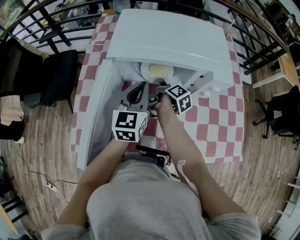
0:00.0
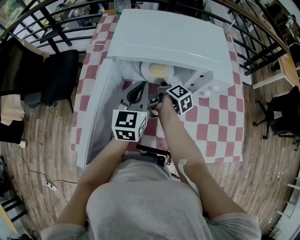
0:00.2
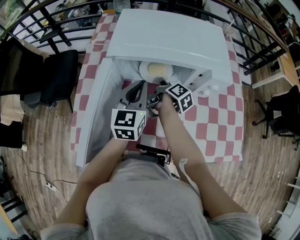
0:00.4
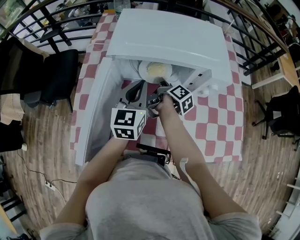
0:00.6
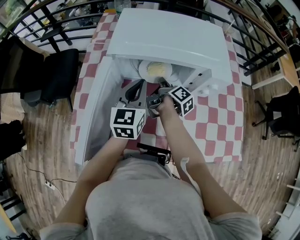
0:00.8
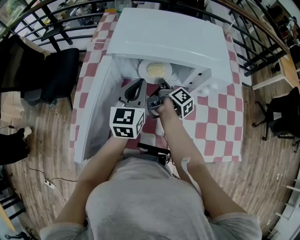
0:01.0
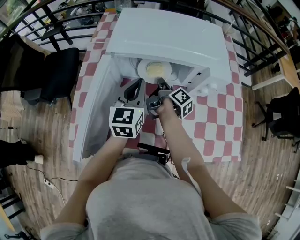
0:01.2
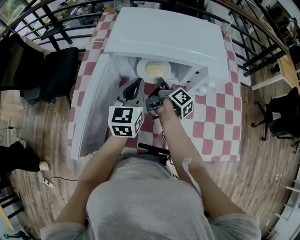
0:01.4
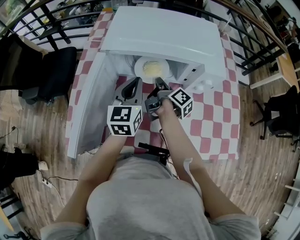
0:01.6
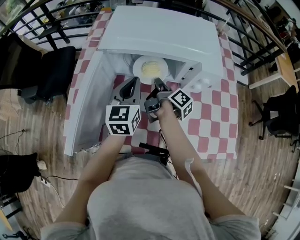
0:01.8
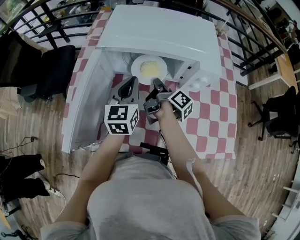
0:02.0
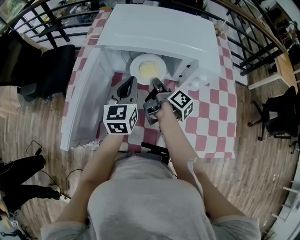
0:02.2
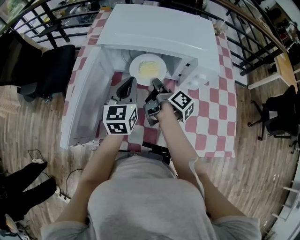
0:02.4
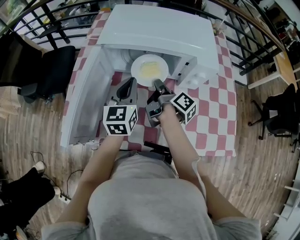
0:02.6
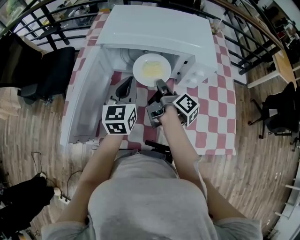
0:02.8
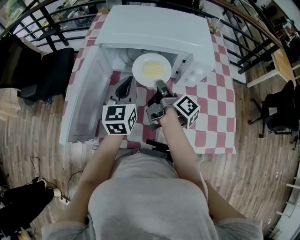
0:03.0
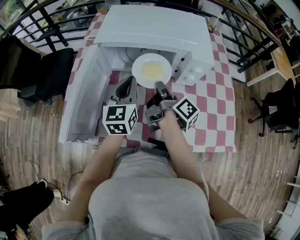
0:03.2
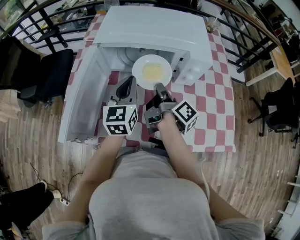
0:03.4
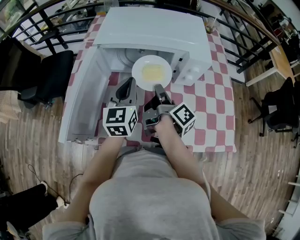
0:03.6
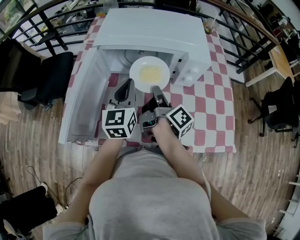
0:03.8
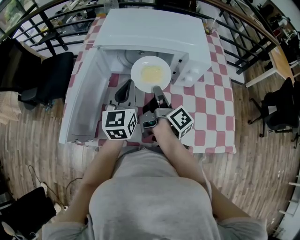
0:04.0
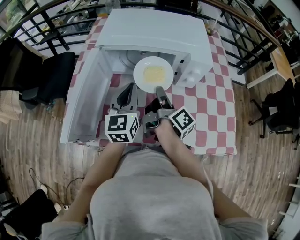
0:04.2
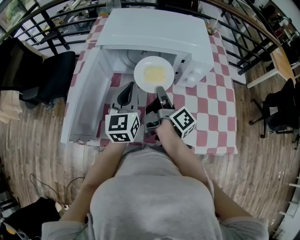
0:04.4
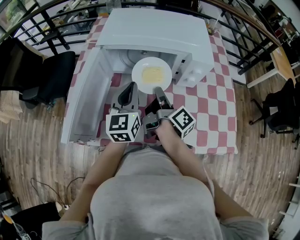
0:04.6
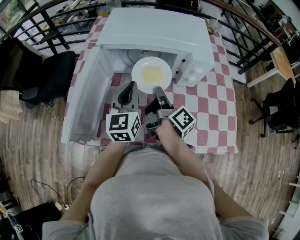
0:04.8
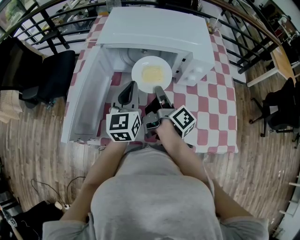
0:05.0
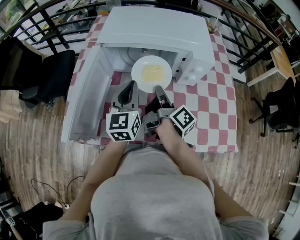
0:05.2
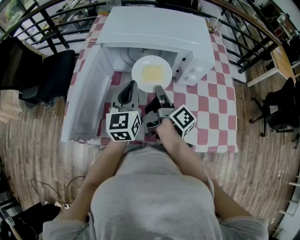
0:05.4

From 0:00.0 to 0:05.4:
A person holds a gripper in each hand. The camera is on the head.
From 0:00.0 to 0:01.4: The grippers stay close to where they were, moving slightly.
From 0:01.4 to 0:02.8: The right gripper heads backward and upward, covering approximately 10 cm.
From 0:02.8 to 0:04.0: The grippers make only small movements.
From 0:04.0 to 0:05.4: Neither gripper changes place.

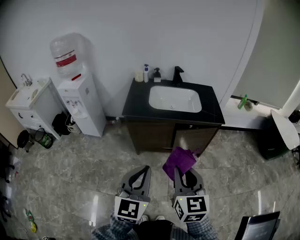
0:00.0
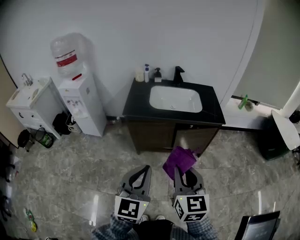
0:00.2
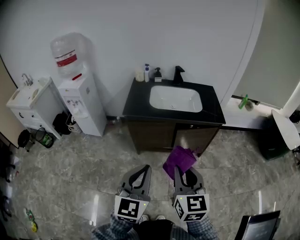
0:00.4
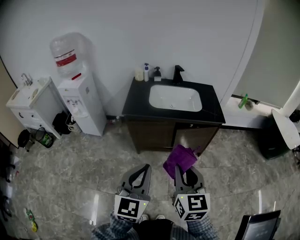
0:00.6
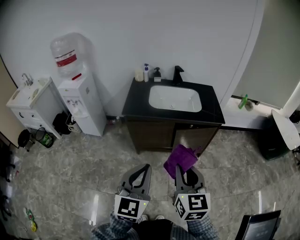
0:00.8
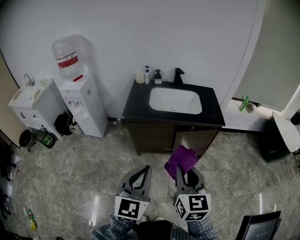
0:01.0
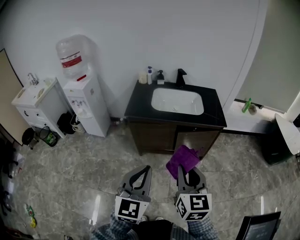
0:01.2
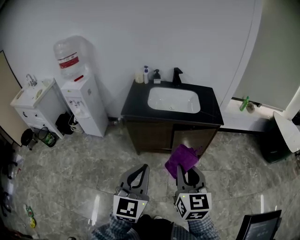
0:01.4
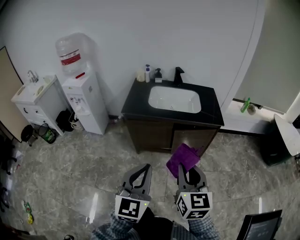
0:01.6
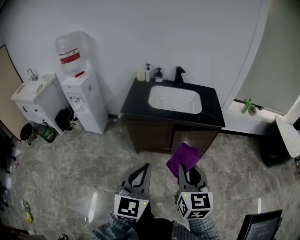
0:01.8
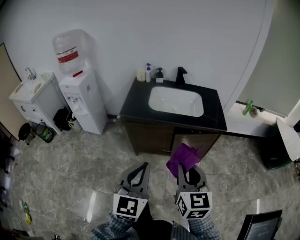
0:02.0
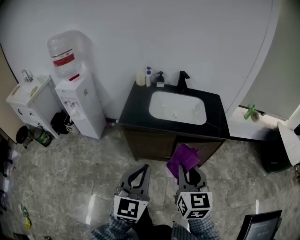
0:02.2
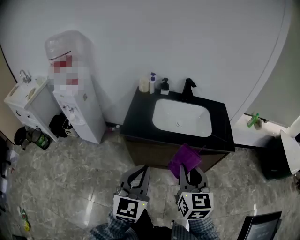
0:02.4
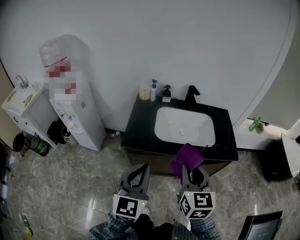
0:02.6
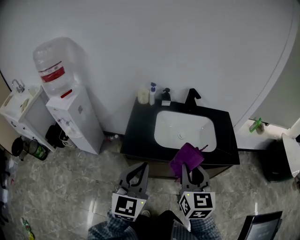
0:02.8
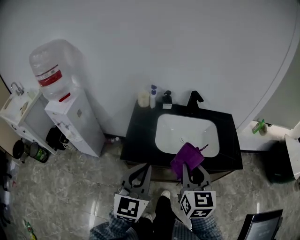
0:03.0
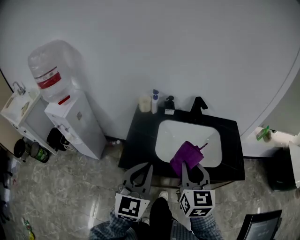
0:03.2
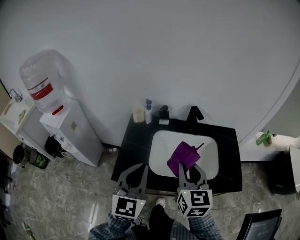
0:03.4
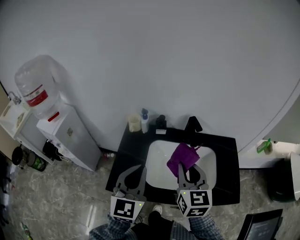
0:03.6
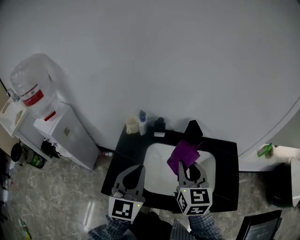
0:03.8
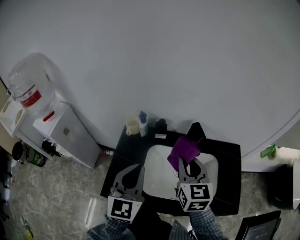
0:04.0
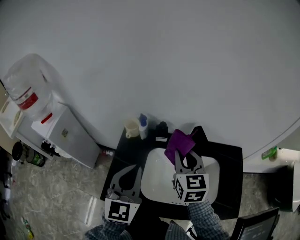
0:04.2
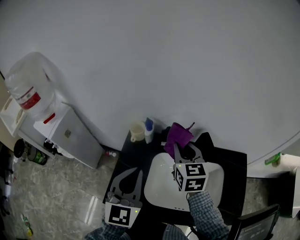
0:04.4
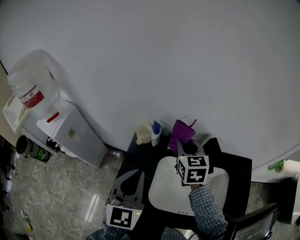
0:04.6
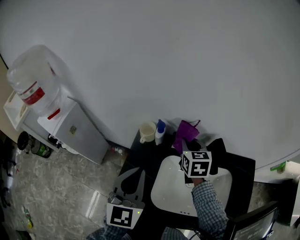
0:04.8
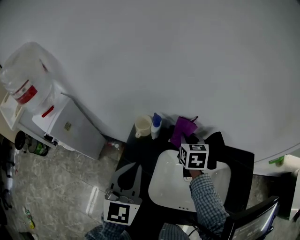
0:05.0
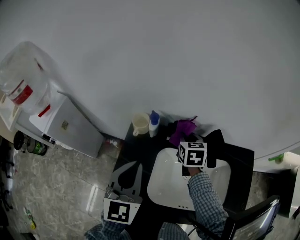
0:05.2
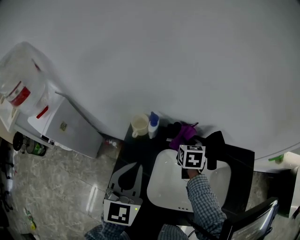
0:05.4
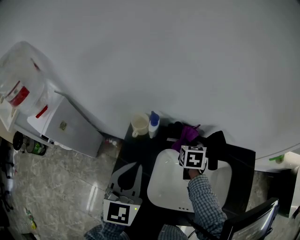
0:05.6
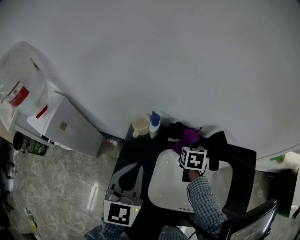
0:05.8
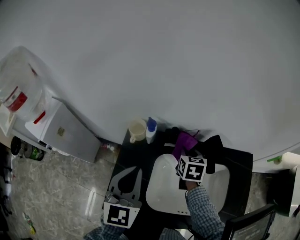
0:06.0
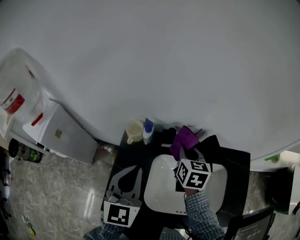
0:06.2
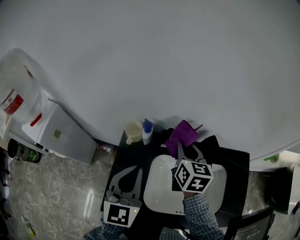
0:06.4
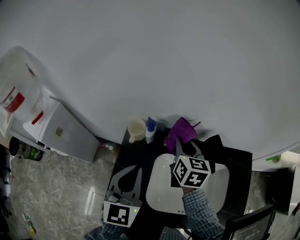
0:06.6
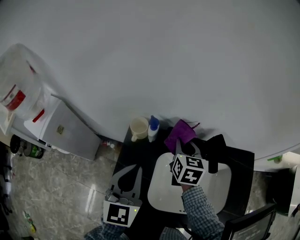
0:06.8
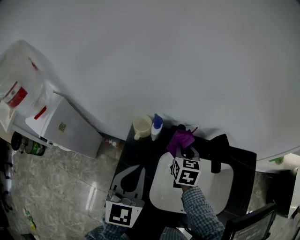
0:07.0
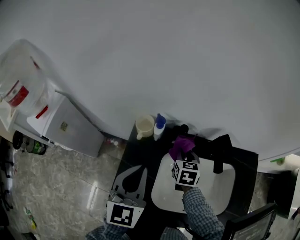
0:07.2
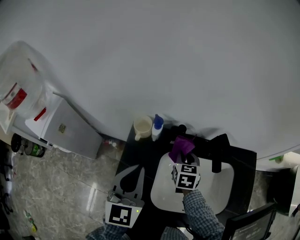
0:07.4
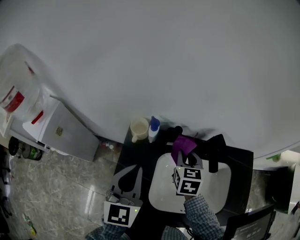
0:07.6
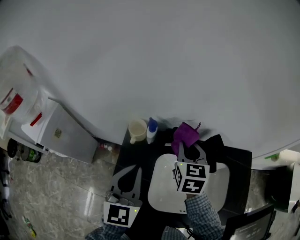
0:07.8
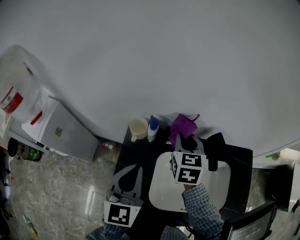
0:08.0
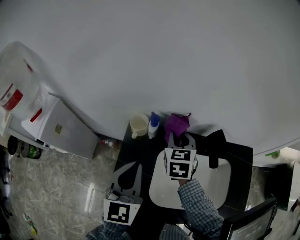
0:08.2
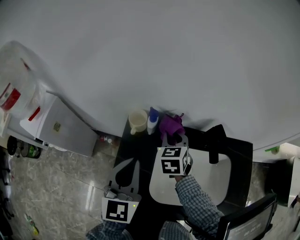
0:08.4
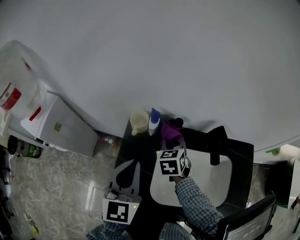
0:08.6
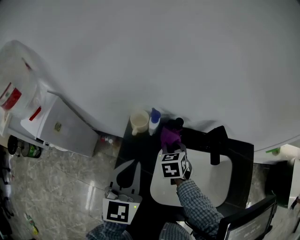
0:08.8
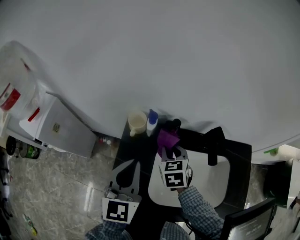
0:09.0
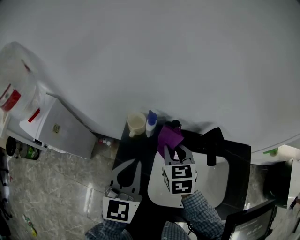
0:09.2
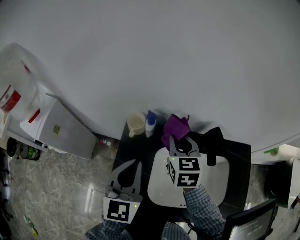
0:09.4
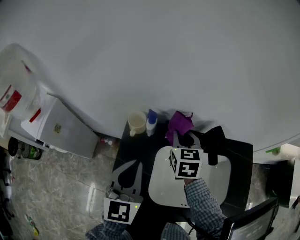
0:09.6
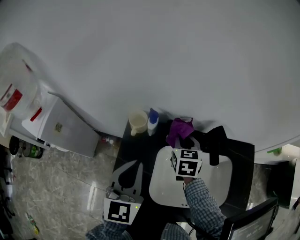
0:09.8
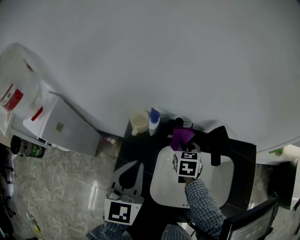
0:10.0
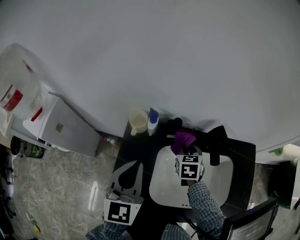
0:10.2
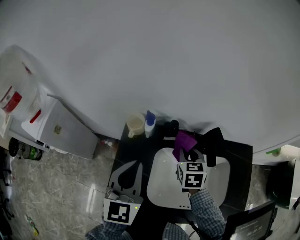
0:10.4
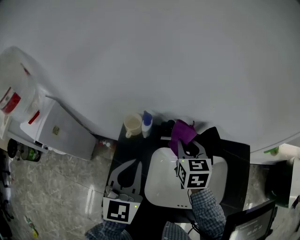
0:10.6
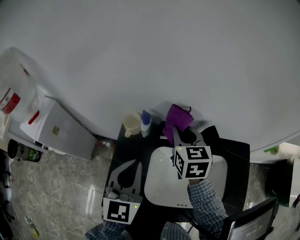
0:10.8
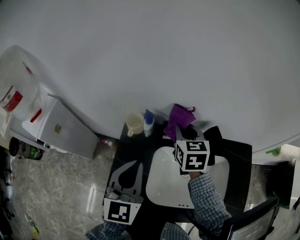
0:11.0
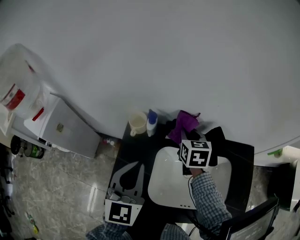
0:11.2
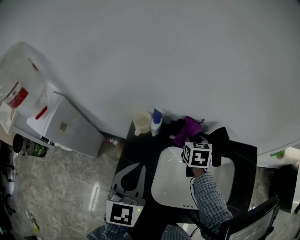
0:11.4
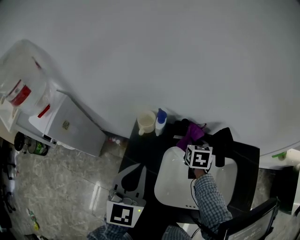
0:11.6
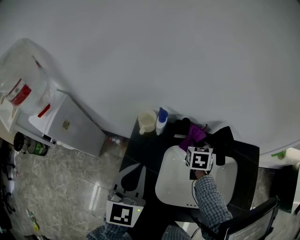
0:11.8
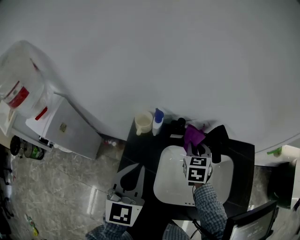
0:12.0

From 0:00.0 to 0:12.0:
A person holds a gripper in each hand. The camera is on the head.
From 0:00.0 to 0:01.6: Both grippers move to the right, some 5 cm.
From 0:01.6 to 0:03.0: Both grippers are carried forward, approximately 40 cm.
From 0:03.0 to 0:04.4: Both grippers move forward, some 35 cm.
From 0:04.4 to 0:06.0: The left gripper travels forward and downward by about 10 cm; the right gripper heads downward, covering approximately 15 cm, and turns by roughly 30 degrees.
From 0:06.0 to 0:07.6: The right gripper moves up and down over roughly 15 cm, changing direction 2 times.
From 0:07.6 to 0:09.0: The right gripper is displaced to the left by approximately 5 cm, and reaches roughly 5 cm upward, then returns.
From 0:09.0 to 0:10.4: The right gripper goes up and down, approximately 10 cm each way, reversing 2 times.
From 0:10.4 to 0:12.0: The right gripper goes up and down, approximately 15 cm each way, reversing 2 times.

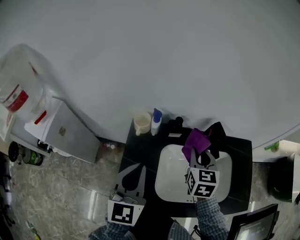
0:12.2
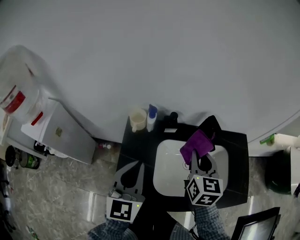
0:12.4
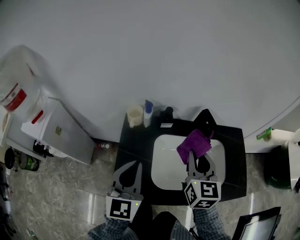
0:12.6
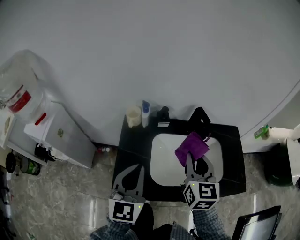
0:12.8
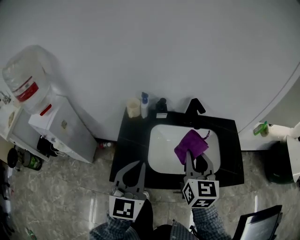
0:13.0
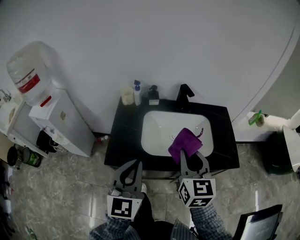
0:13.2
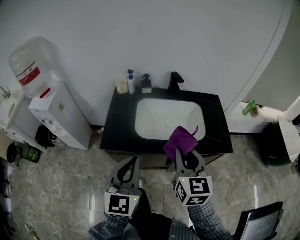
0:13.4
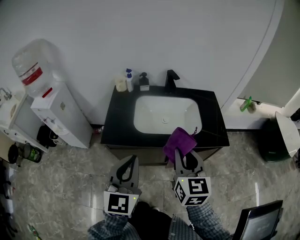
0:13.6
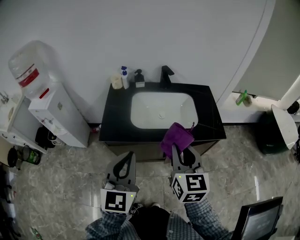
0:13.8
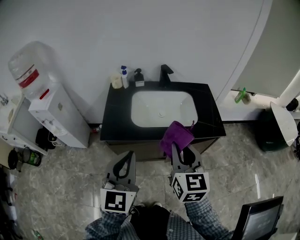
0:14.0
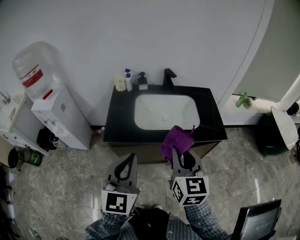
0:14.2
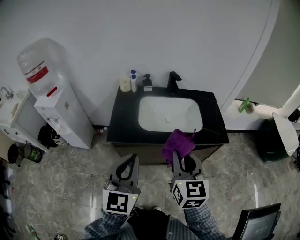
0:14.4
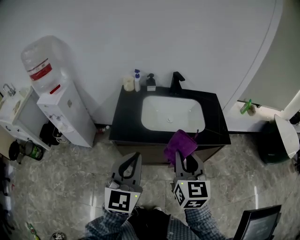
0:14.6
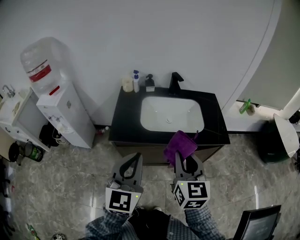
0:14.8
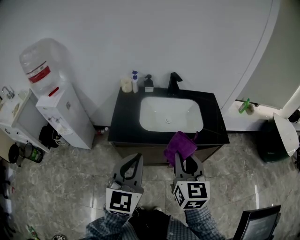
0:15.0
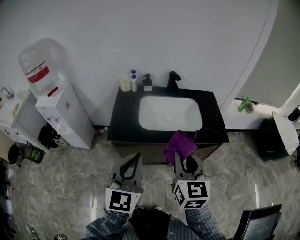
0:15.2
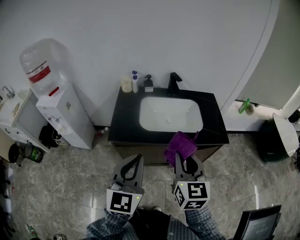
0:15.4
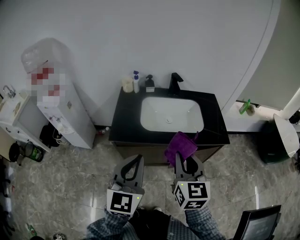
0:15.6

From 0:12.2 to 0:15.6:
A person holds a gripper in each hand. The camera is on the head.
From 0:12.2 to 0:13.8: Both grippers are carried backward, approximately 40 cm.
From 0:13.8 to 0:15.6: The right gripper moves about 5 cm.

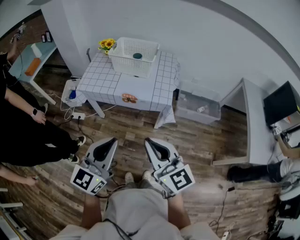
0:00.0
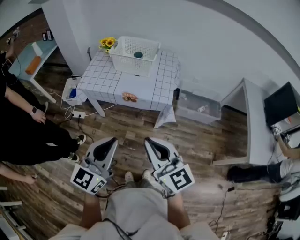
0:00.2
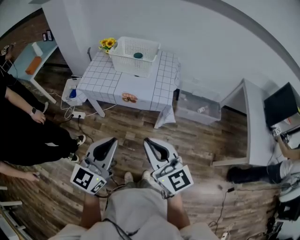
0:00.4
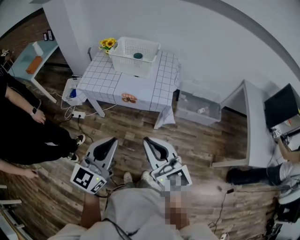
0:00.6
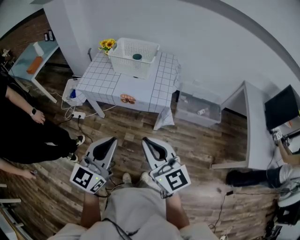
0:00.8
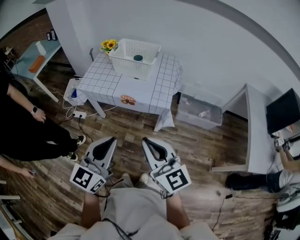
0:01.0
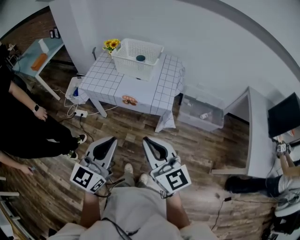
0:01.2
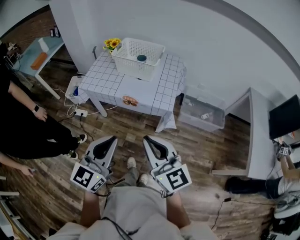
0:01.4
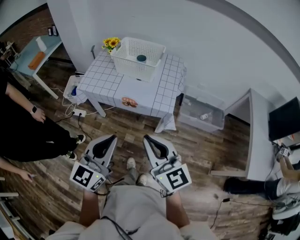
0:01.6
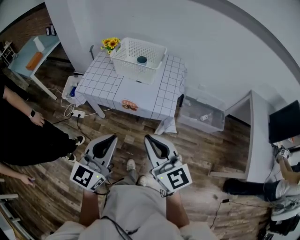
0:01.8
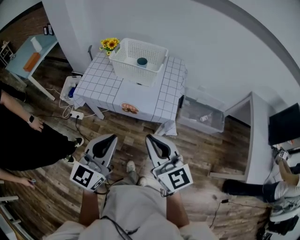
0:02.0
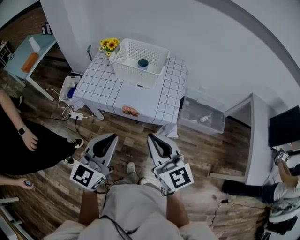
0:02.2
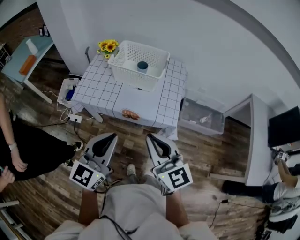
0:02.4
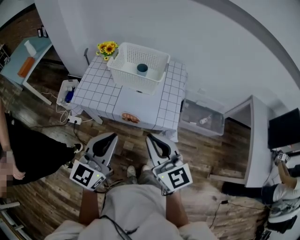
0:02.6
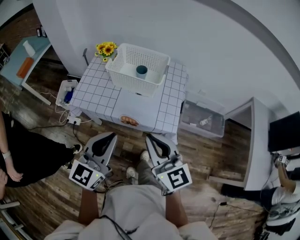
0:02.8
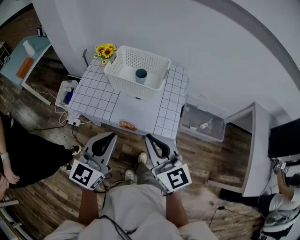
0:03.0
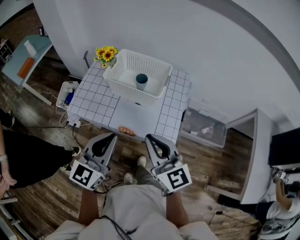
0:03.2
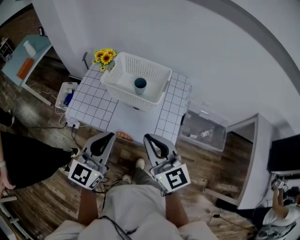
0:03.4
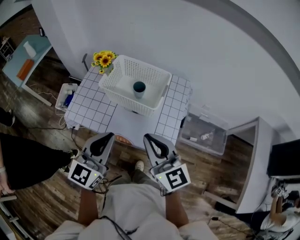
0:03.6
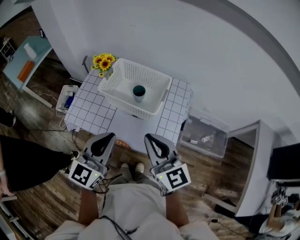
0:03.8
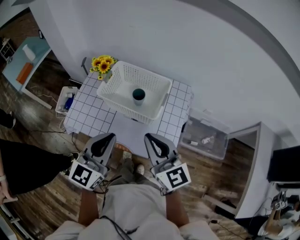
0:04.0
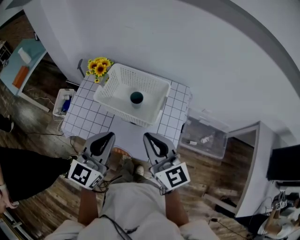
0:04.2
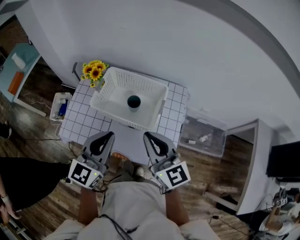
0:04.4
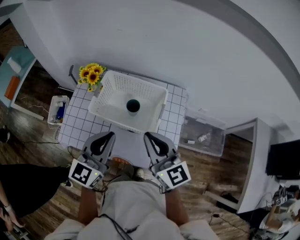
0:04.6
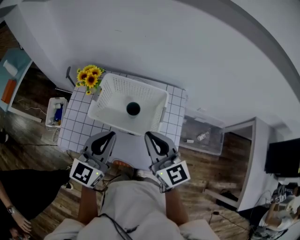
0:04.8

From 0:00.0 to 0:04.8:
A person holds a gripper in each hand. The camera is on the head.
From 0:00.0 to 0:01.6: Both grippers move forward, approximately 5 cm.
From 0:01.6 to 0:03.2: The grippers both shift forward by some 25 cm.
From 0:03.2 to 0:04.8: Both grippers move forward, about 25 cm.
